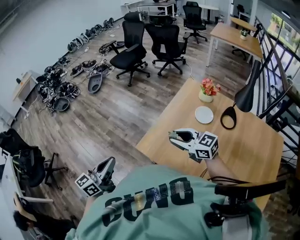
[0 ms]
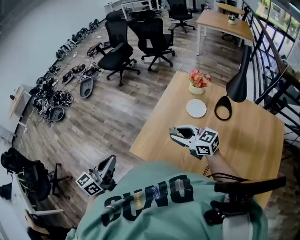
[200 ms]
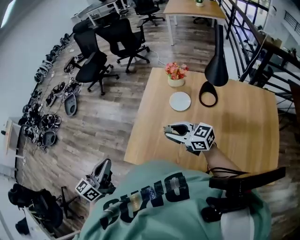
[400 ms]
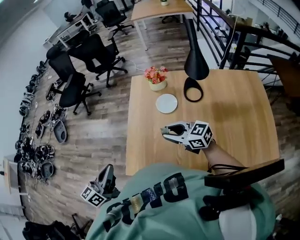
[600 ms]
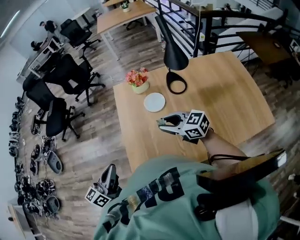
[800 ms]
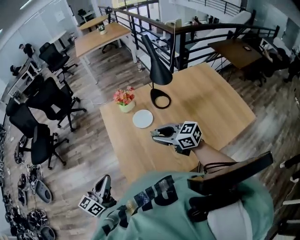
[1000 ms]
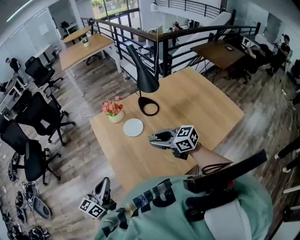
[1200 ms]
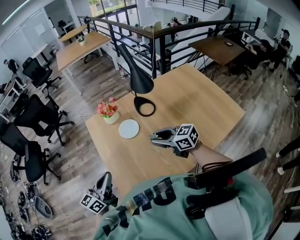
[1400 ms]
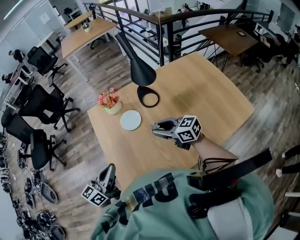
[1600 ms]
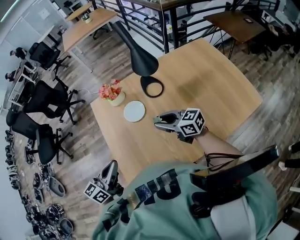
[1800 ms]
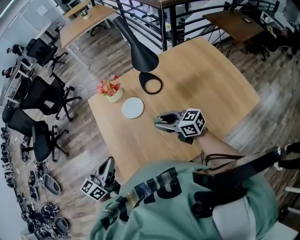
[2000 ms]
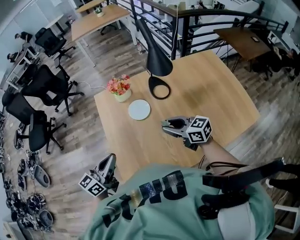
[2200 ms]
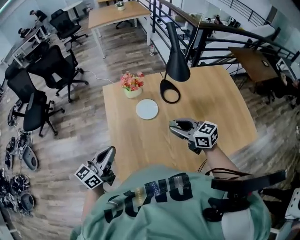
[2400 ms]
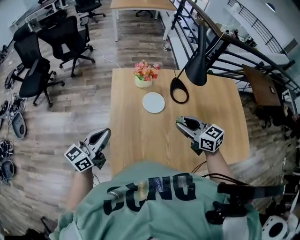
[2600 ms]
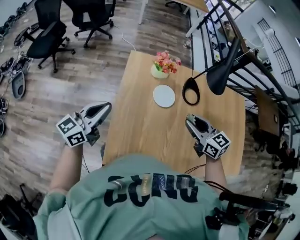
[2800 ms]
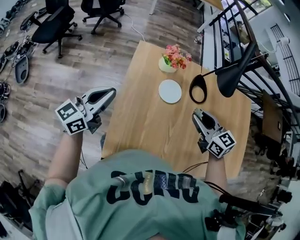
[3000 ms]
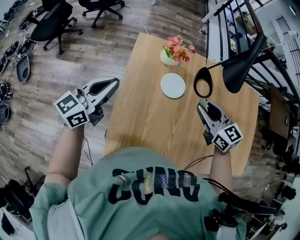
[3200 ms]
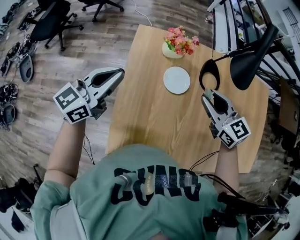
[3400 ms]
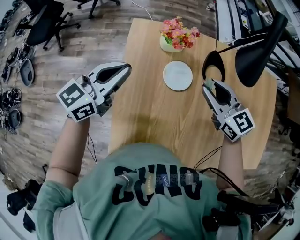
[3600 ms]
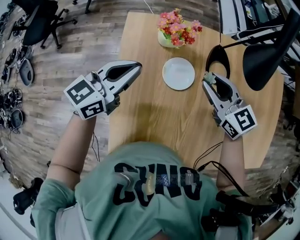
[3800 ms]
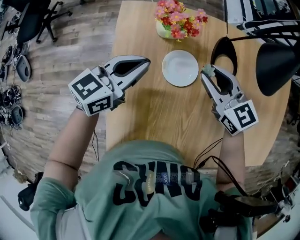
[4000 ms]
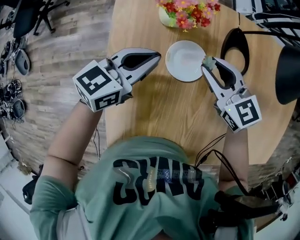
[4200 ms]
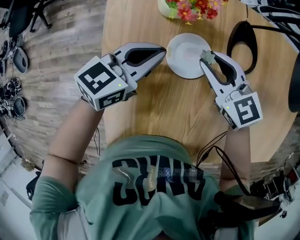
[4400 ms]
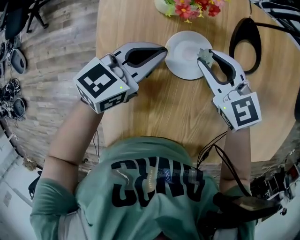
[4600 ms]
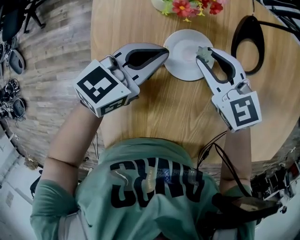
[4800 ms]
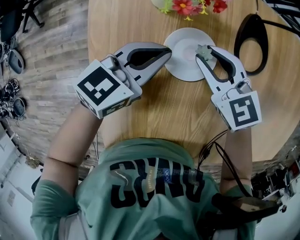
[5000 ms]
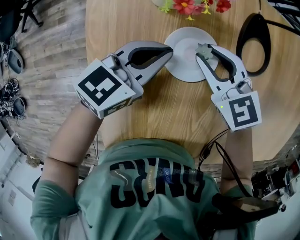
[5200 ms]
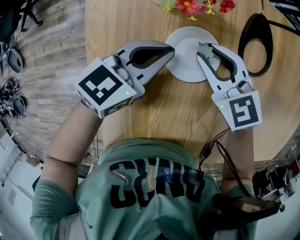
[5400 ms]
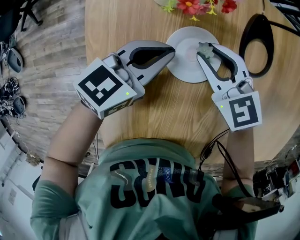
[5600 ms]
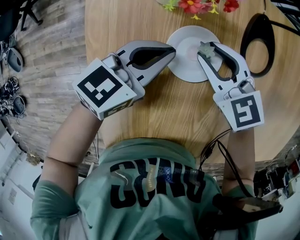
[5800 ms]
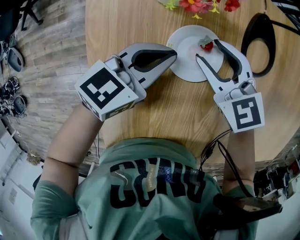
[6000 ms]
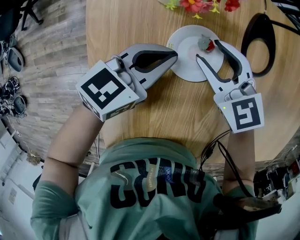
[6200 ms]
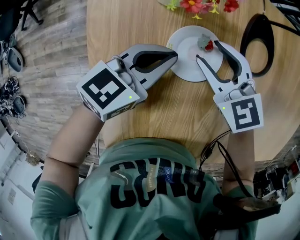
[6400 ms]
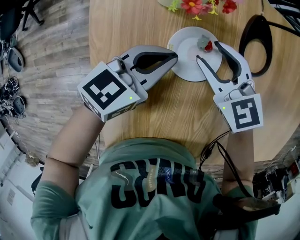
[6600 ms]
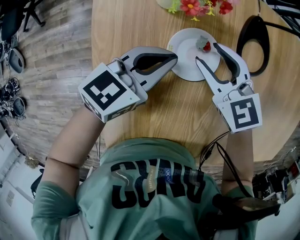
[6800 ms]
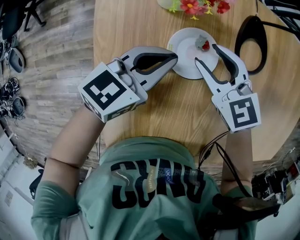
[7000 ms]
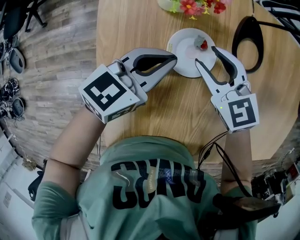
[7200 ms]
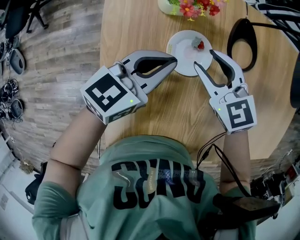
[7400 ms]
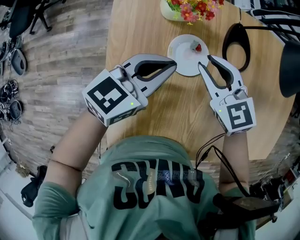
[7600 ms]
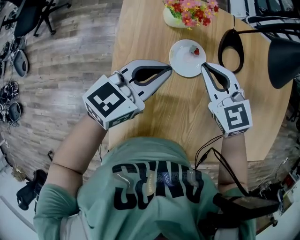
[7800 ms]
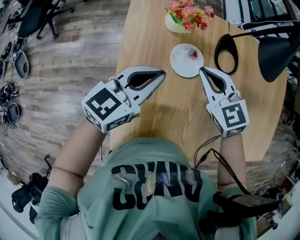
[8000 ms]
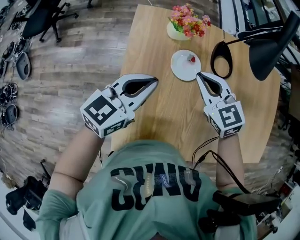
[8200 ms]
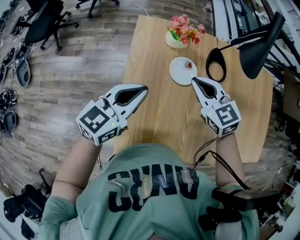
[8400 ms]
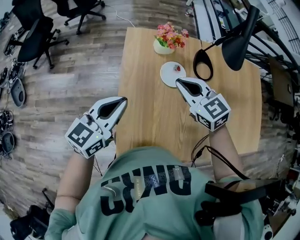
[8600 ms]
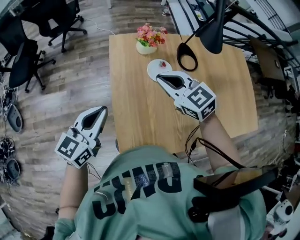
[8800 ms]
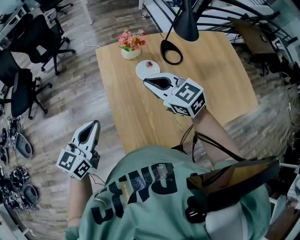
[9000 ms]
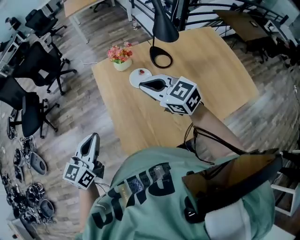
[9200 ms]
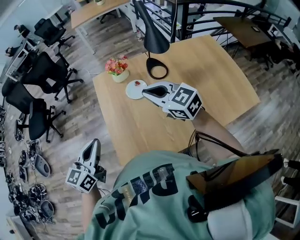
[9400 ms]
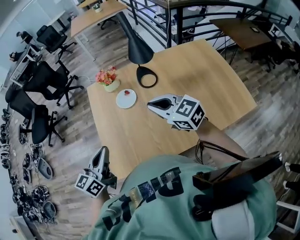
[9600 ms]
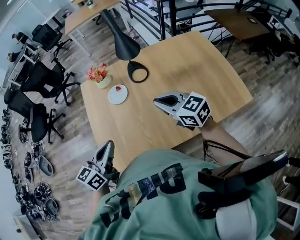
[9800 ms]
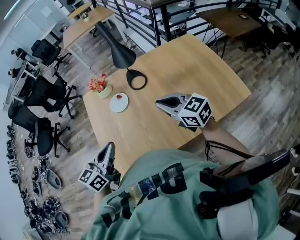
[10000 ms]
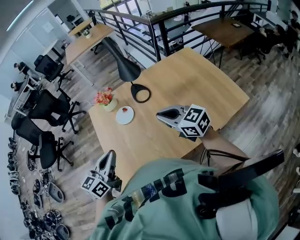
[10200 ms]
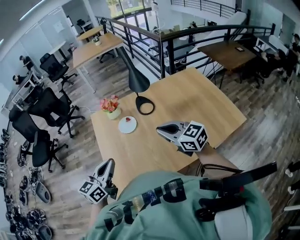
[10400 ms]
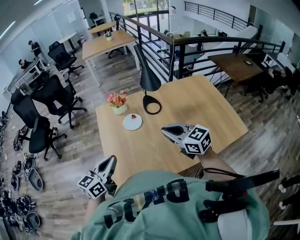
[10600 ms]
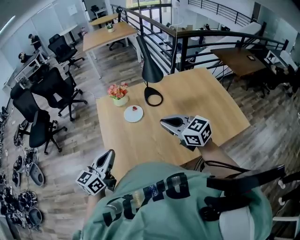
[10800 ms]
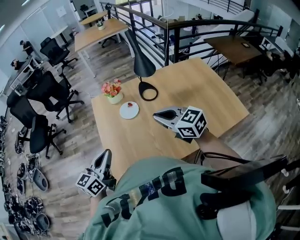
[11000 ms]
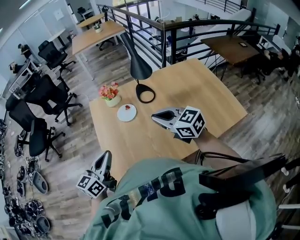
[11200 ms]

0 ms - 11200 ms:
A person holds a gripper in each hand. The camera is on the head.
0 ms - 1600 ms: The left gripper shifts by about 35 cm, and swivels about 60 degrees. The right gripper changes place by some 20 cm, and changes its angle by roughly 60 degrees.
1600 ms - 3200 ms: The right gripper goes some 10 cm forward. The left gripper is displaced forward and to the left by approximately 15 cm.
3200 ms - 4800 ms: The right gripper travels downward and forward by about 30 cm. Meanwhile the left gripper moves downward, to the right and forward, approximately 35 cm, and turns by approximately 30 degrees.
4800 ms - 6400 ms: The grippers move only a little.
6400 ms - 8000 ms: The two grippers go approximately 20 cm upward and backward. The right gripper closes up.
8000 ms - 9600 ms: The right gripper moves backward, upward and to the right, about 30 cm; the left gripper travels backward and upward by about 30 cm.
9600 ms - 11200 ms: The right gripper moves roughly 10 cm to the right and comes back. Meanwhile the left gripper goes to the right and returns, some 10 cm each way.

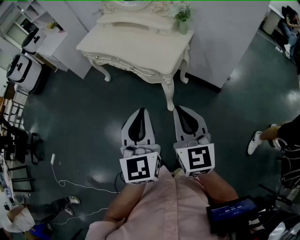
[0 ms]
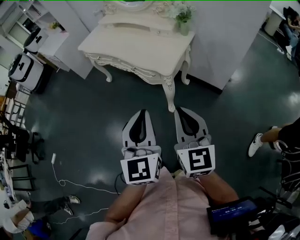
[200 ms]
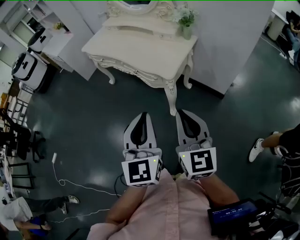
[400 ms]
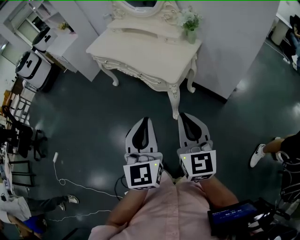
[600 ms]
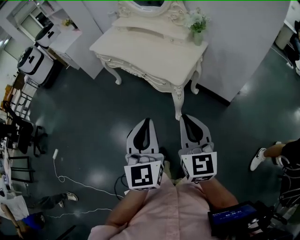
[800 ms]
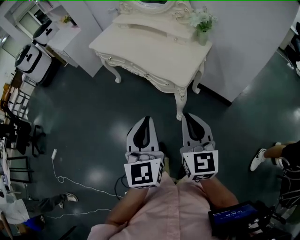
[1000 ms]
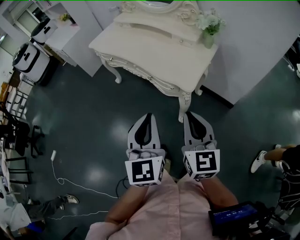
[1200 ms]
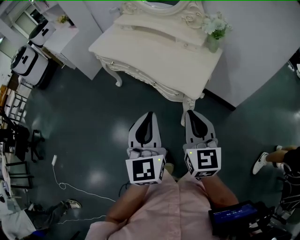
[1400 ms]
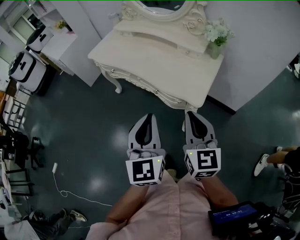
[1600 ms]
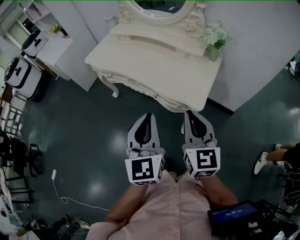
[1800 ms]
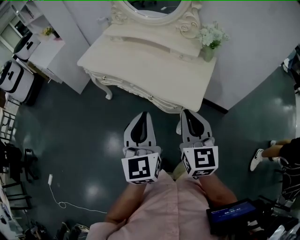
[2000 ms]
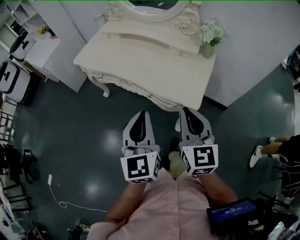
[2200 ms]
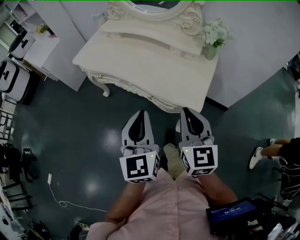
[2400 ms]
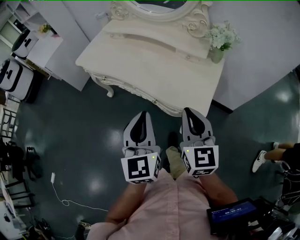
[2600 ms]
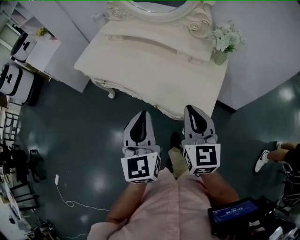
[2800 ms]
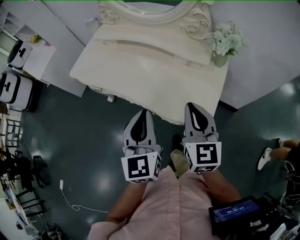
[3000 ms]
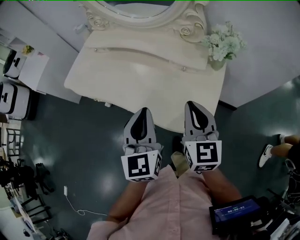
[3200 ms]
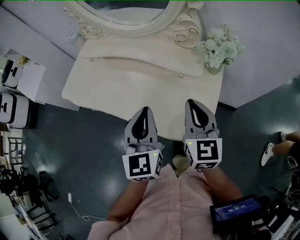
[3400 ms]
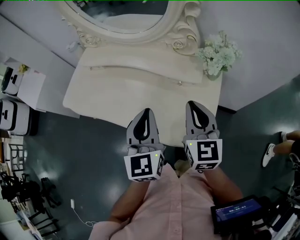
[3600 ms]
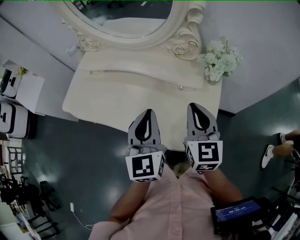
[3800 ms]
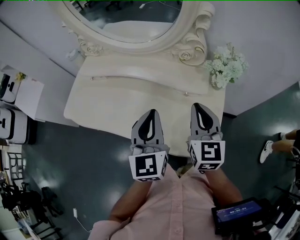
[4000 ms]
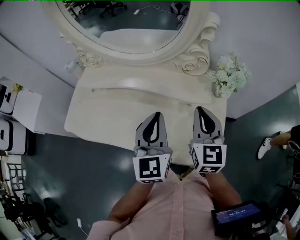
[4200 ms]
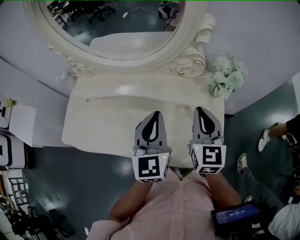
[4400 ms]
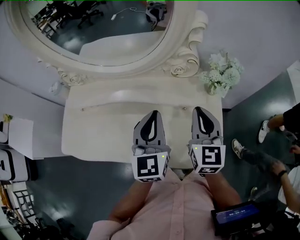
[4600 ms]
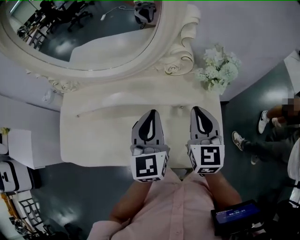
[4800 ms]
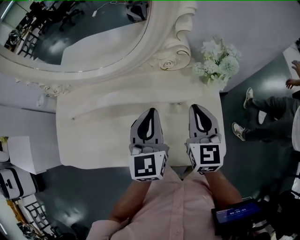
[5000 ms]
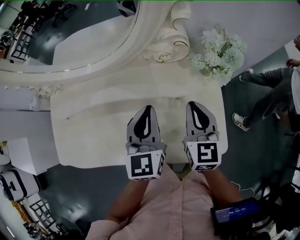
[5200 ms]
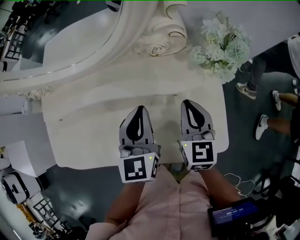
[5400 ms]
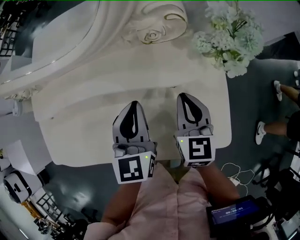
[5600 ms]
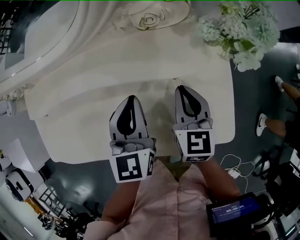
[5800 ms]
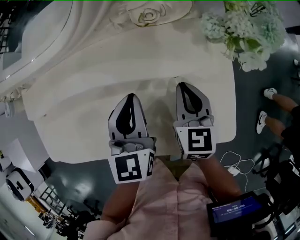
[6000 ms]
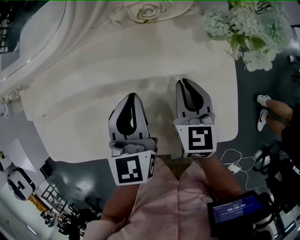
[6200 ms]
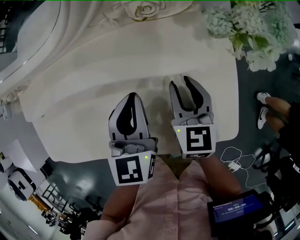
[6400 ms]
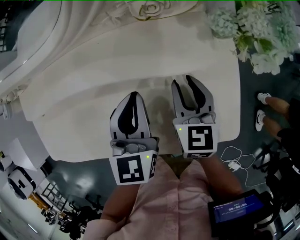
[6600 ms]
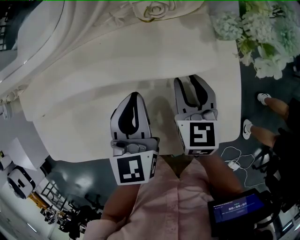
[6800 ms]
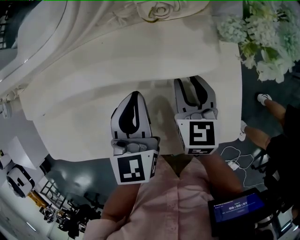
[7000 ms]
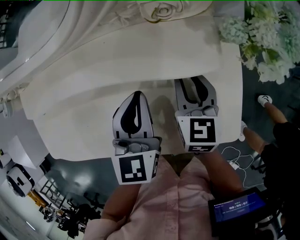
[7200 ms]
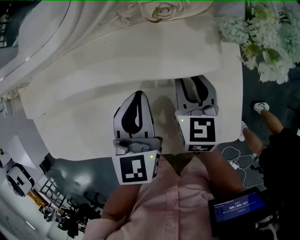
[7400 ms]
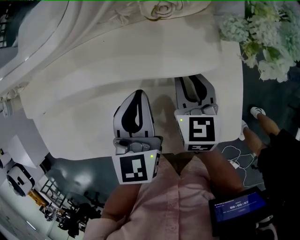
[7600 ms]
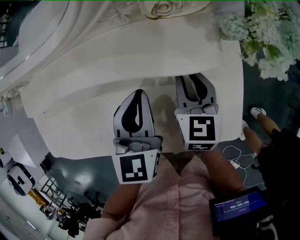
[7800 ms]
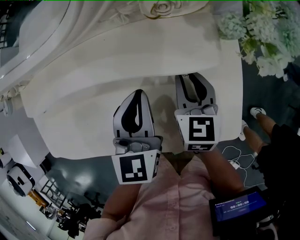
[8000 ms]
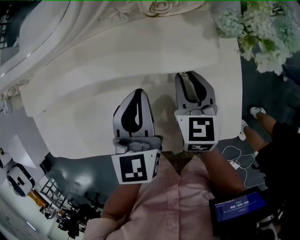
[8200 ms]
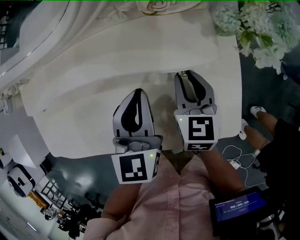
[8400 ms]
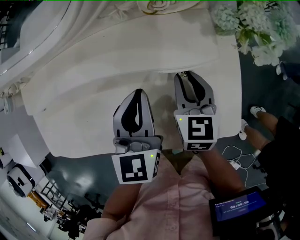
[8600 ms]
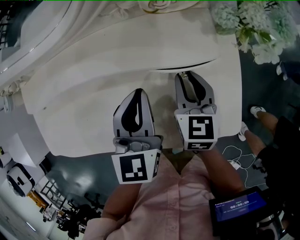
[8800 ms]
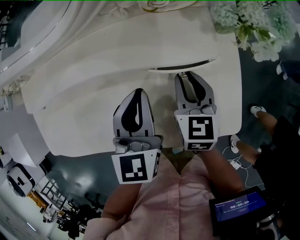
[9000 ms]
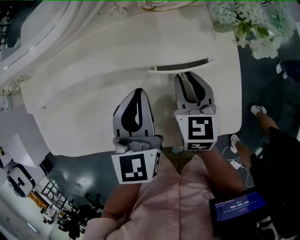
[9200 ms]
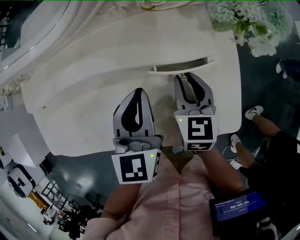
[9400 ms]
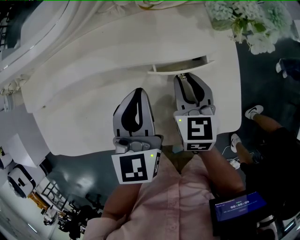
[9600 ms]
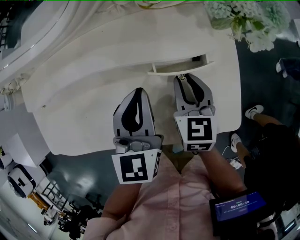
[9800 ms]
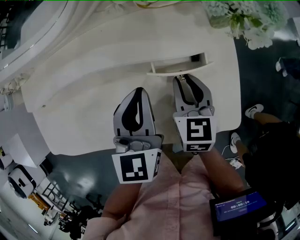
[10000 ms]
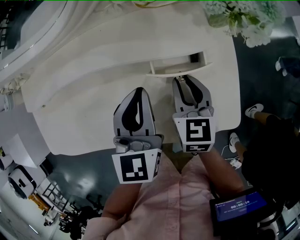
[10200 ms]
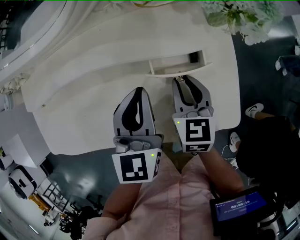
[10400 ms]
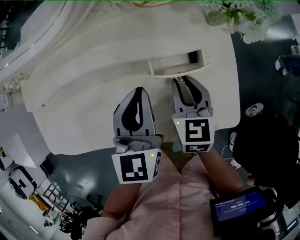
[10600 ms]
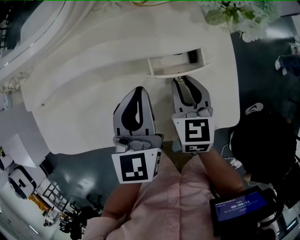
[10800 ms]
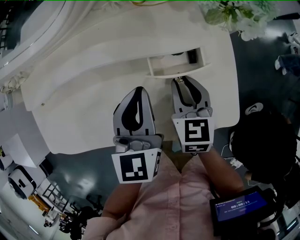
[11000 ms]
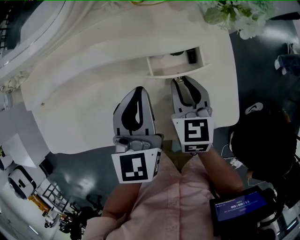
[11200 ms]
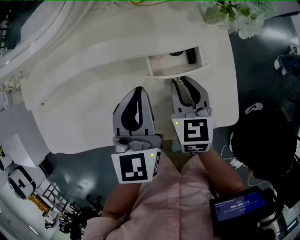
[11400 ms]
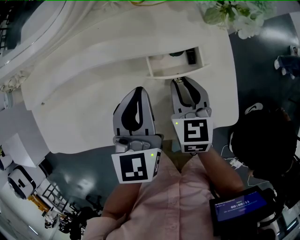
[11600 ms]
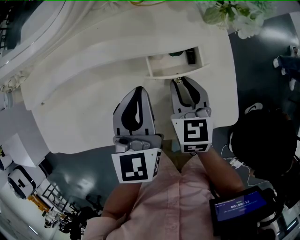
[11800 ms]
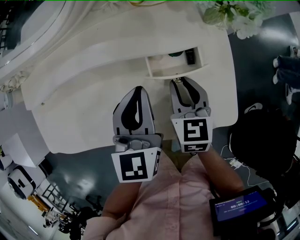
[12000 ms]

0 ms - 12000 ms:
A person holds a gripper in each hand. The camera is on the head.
0 ms - 1600 ms: Both grippers travel together forward and to the left, roughly 20 cm.
1600 ms - 3000 ms: Both grippers move forward, some 20 cm.
3000 ms - 4400 ms: The two grippers go some 25 cm forward. The right gripper swivels approximately 20 degrees; the left gripper swivels approximately 20 degrees.
4400 ms - 6000 ms: The right gripper shifts roughly 20 cm downward, and turns by some 20 degrees; the left gripper goes approximately 20 cm downward and forward.
6000 ms - 7600 ms: The right gripper opens up.
7600 ms - 9000 ms: The grippers move only a little.
9000 ms - 10400 ms: The grippers move only a little.
10400 ms - 12000 ms: Both grippers stay about where they are.

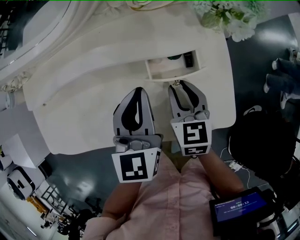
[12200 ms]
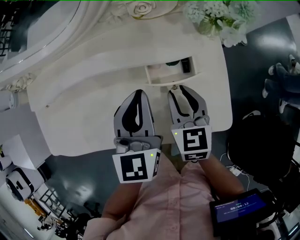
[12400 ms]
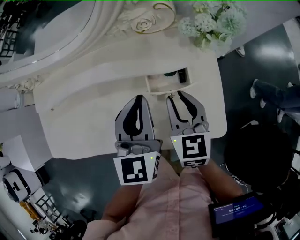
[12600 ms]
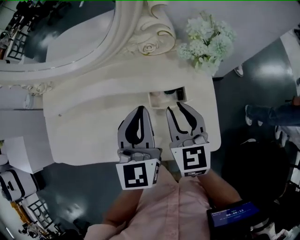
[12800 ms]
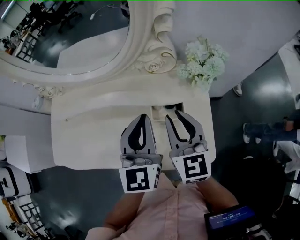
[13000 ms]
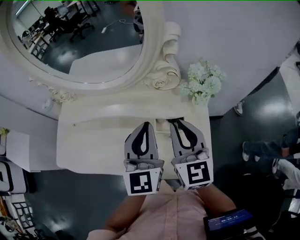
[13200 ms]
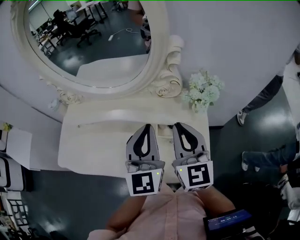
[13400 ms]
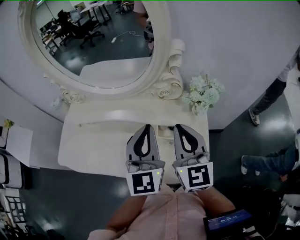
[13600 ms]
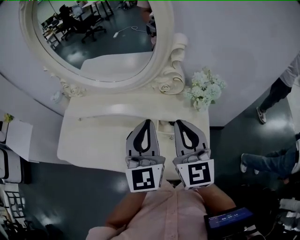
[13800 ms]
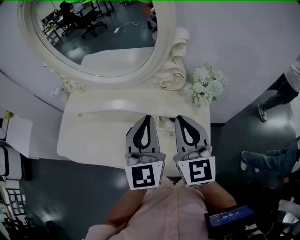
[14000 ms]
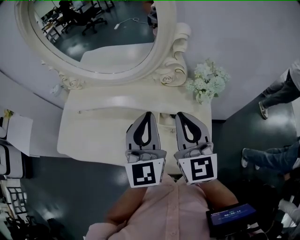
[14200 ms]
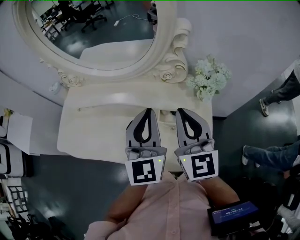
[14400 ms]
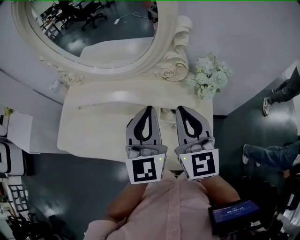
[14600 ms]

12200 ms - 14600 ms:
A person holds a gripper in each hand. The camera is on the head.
12200 ms - 13400 ms: Both grippers move upward, about 20 cm. The left gripper swivels some 30 degrees. Meanwhile the right gripper tips its fingers upward by roughly 30 degrees.
13400 ms - 14600 ms: The grippers make only small movements.
